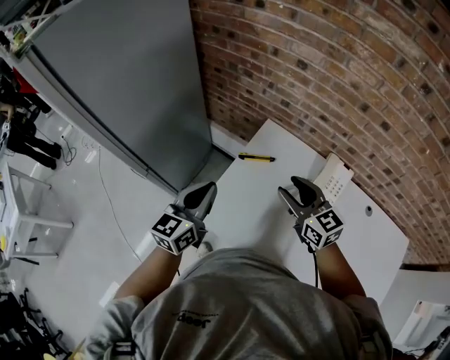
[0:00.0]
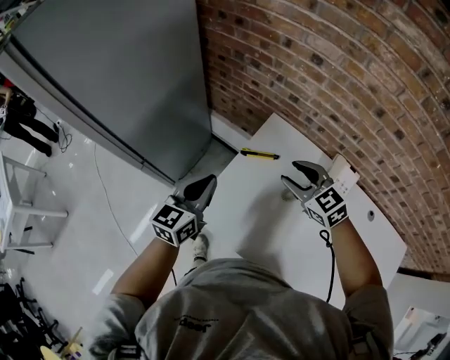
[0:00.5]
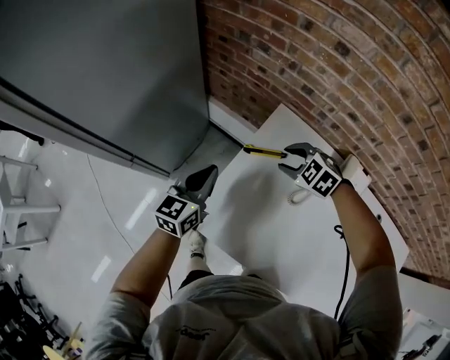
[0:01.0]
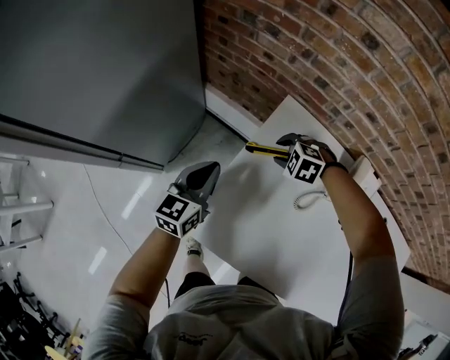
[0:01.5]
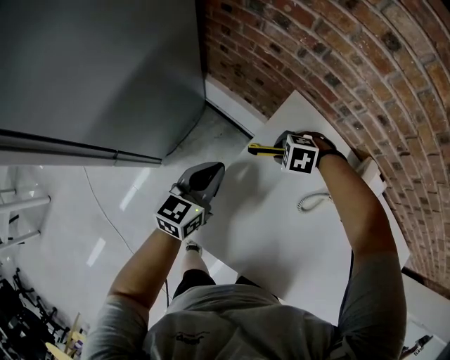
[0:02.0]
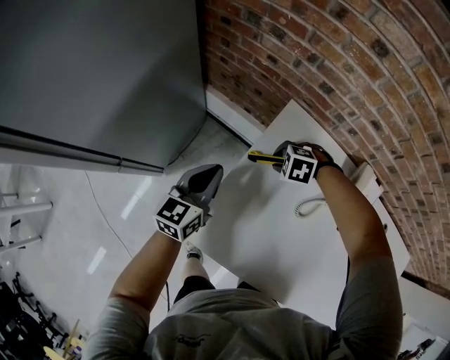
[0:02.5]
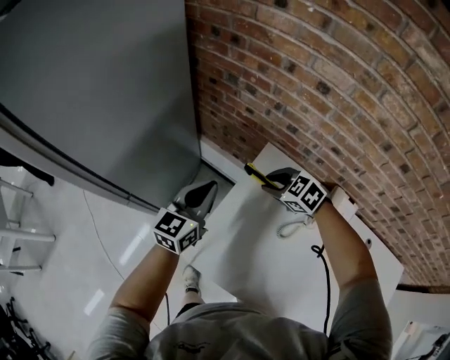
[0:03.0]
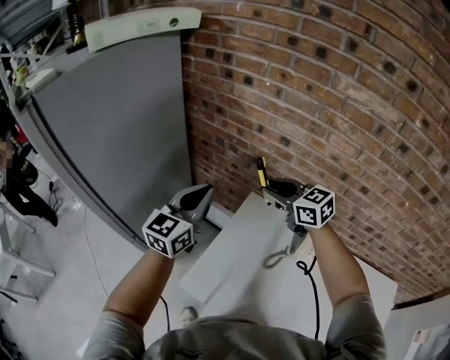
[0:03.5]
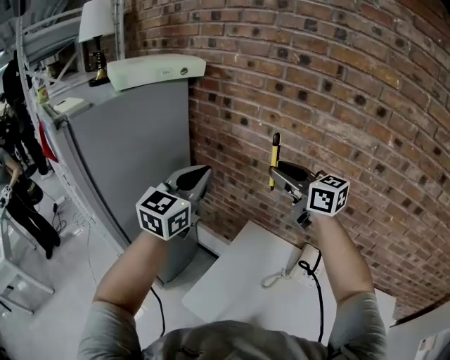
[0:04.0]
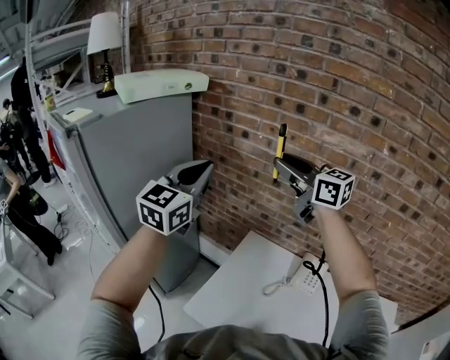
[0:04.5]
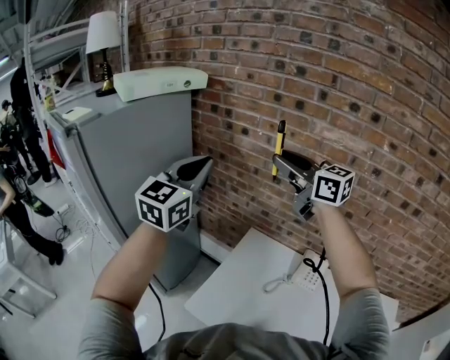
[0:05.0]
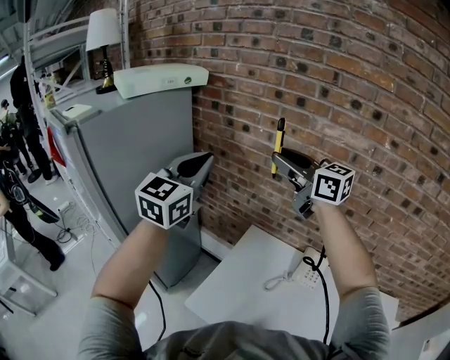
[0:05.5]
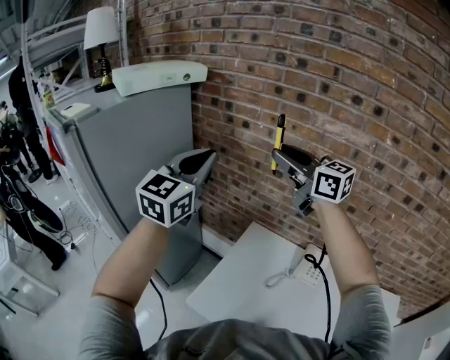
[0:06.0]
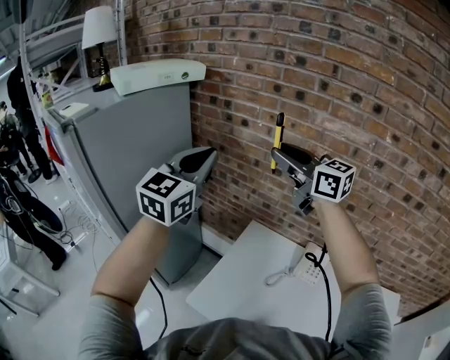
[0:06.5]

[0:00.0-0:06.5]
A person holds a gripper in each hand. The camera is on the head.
0:00.0 to 0:02.0: Both grippers travel together downward, roughly 30 cm. The right gripper angles its fingers downward, by approximately 70 degrees.
0:02.0 to 0:04.5: Both grippers travel together upward, roughly 60 cm. The left gripper rotates some 40 degrees. The right gripper tilts its fingers roughly 90 degrees upward.
0:04.5 to 0:06.5: The grippers make only small movements.

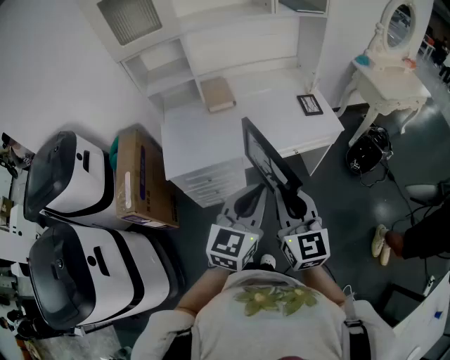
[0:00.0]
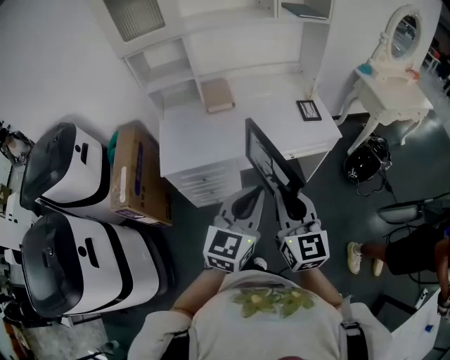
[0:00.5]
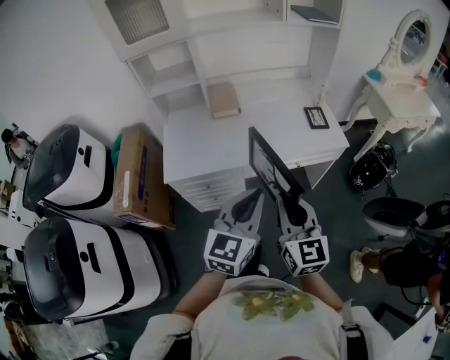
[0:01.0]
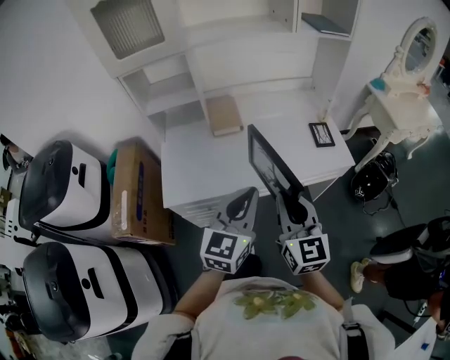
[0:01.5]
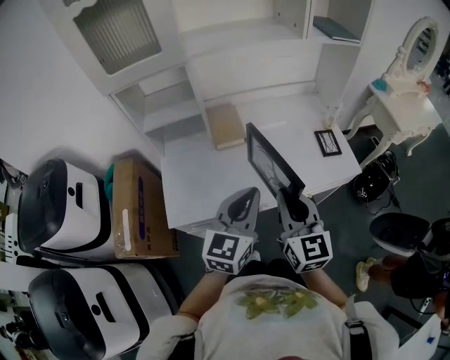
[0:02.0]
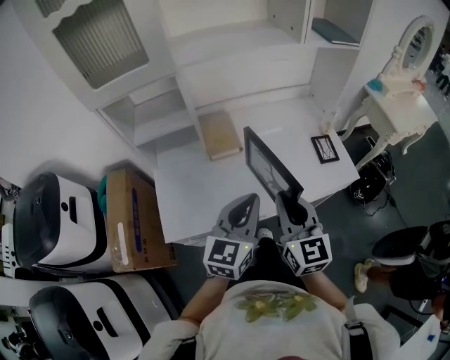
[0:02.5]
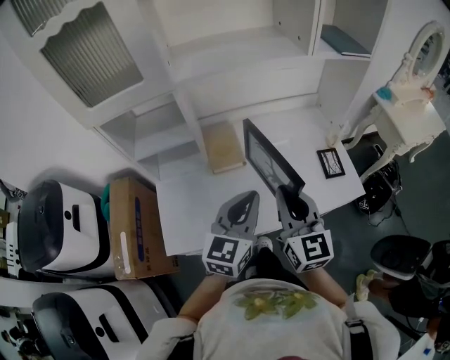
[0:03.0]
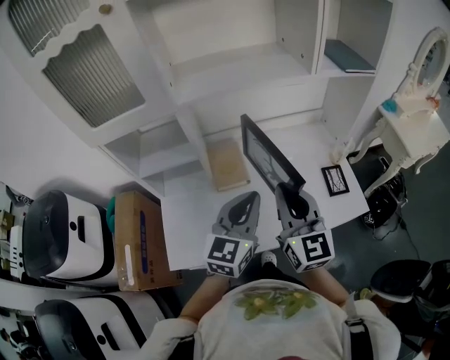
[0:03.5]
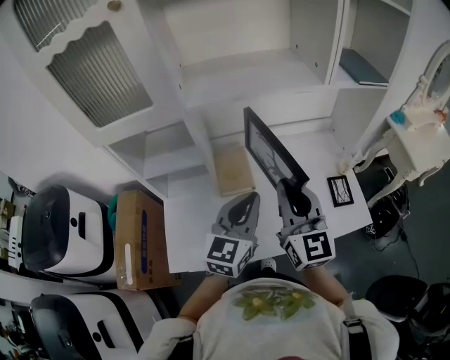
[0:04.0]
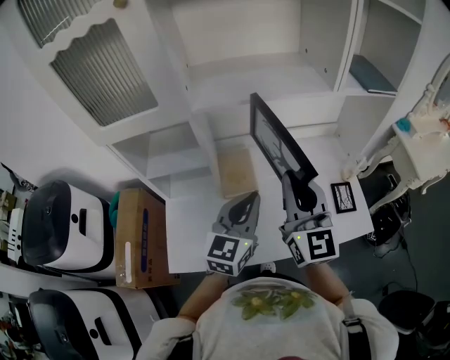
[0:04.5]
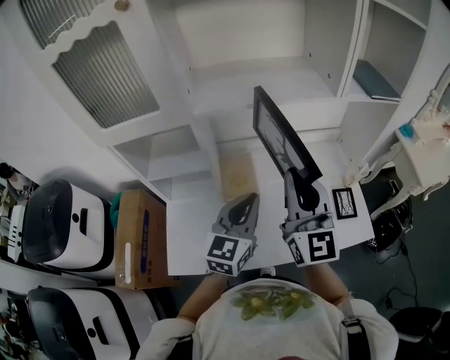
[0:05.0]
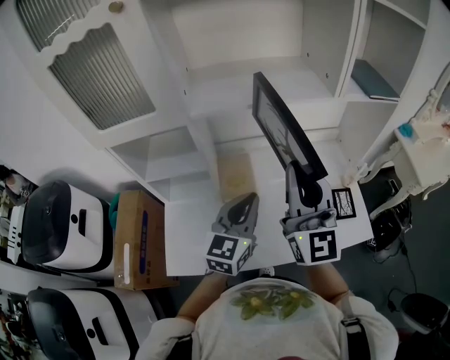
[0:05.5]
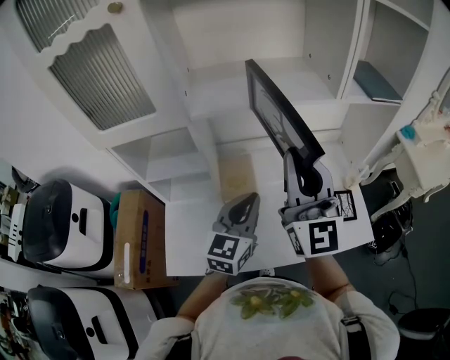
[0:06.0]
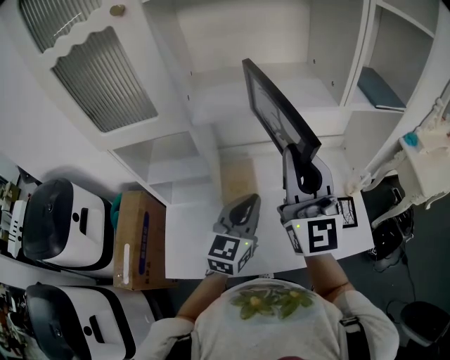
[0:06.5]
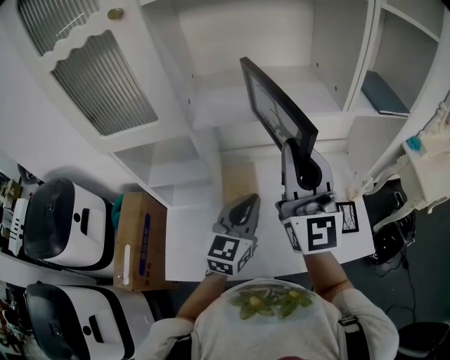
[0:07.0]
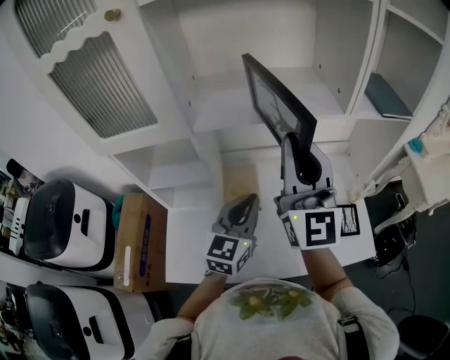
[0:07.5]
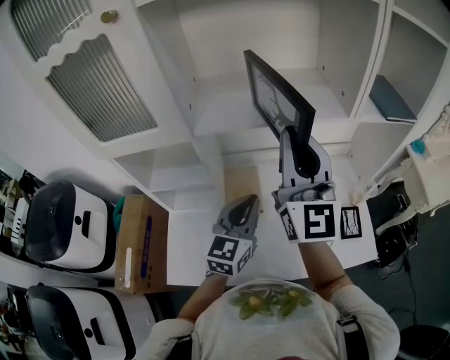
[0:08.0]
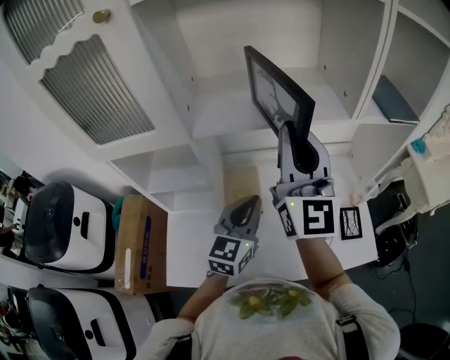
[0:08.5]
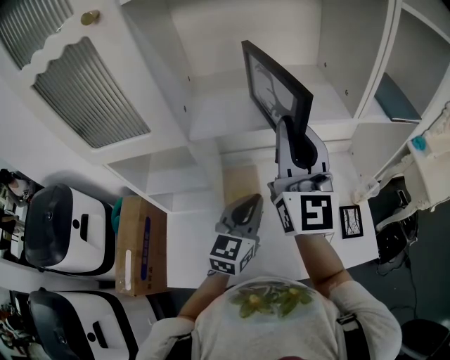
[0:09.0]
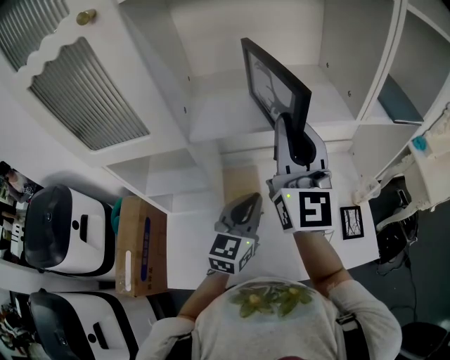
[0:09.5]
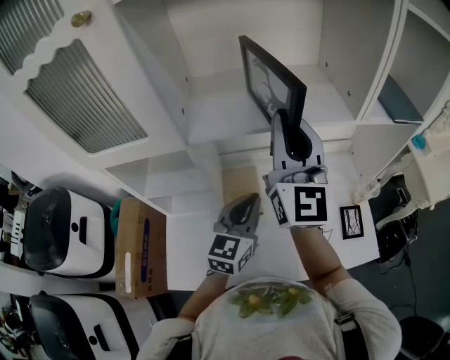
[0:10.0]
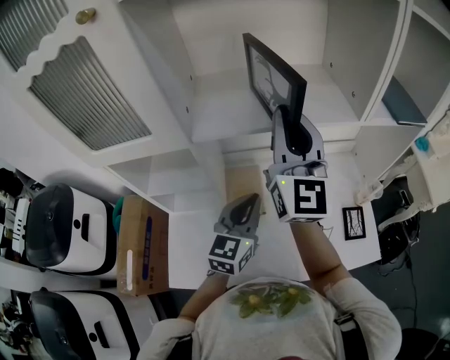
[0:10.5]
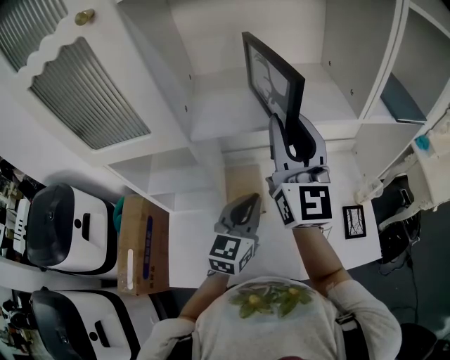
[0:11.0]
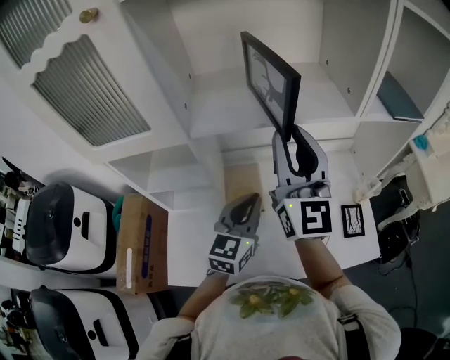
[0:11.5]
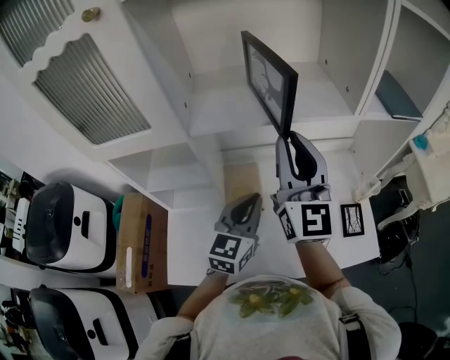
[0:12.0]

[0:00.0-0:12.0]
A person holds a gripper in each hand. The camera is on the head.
0:00.0 to 0:02.0: The two grippers go roughly 25 cm forward.
0:02.0 to 0:04.0: The grippers both shift forward by approximately 20 cm.
0:04.0 to 0:06.0: The right gripper is displaced upward and forward by some 10 cm.
0:06.0 to 0:08.0: The left gripper moves forward, about 5 cm. The right gripper moves forward, some 10 cm.
0:08.0 to 0:10.0: The right gripper travels forward by some 5 cm.
0:10.0 to 0:12.0: The right gripper moves roughly 5 cm.

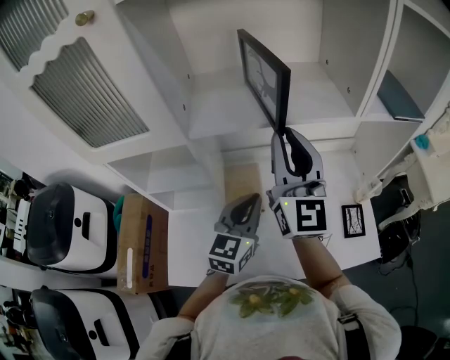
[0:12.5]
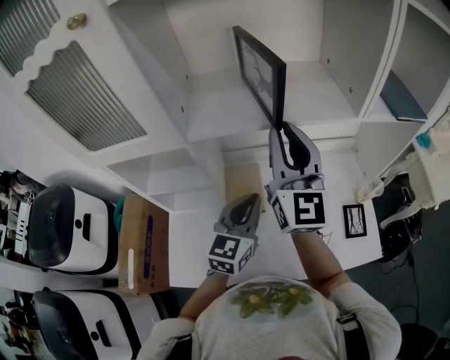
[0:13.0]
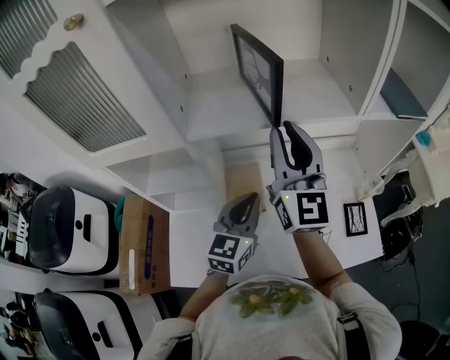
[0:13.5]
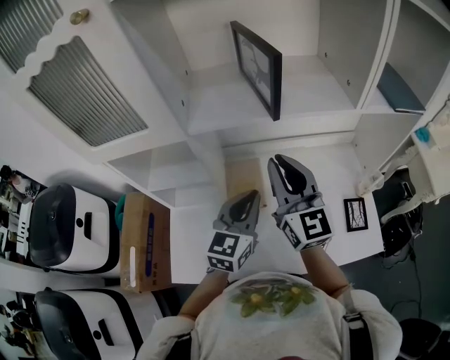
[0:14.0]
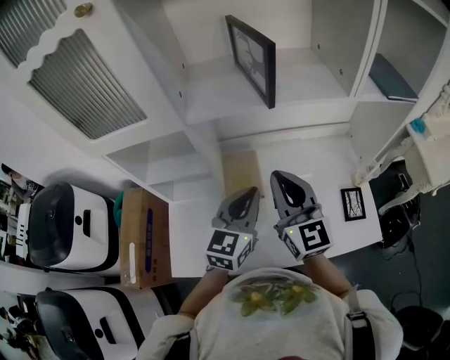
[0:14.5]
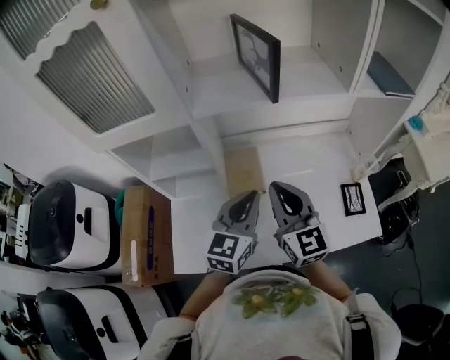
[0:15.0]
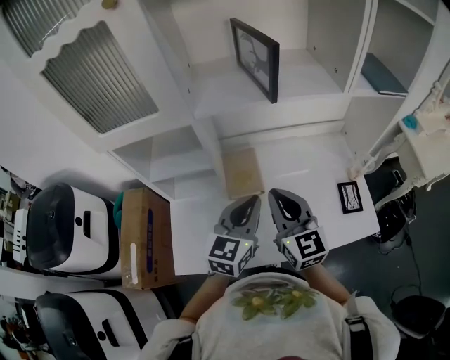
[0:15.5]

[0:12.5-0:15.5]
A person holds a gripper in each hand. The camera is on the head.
0:12.5 to 0:14.0: The right gripper goes about 10 cm downward.
0:14.0 to 0:15.5: The right gripper goes approximately 15 cm backward and downward. The left gripper heads backward, covering some 5 cm.

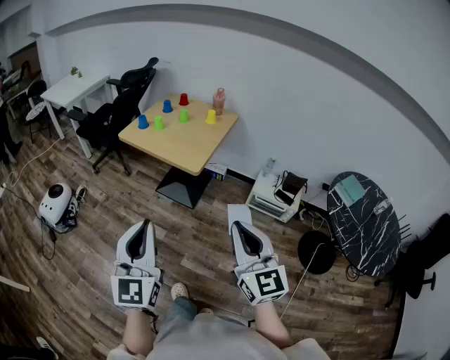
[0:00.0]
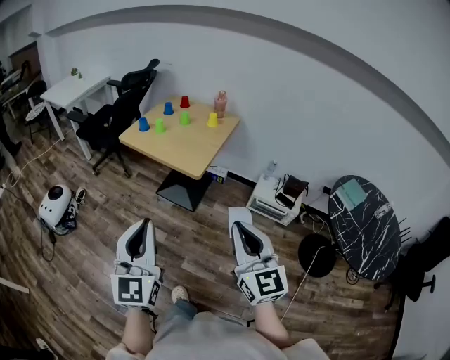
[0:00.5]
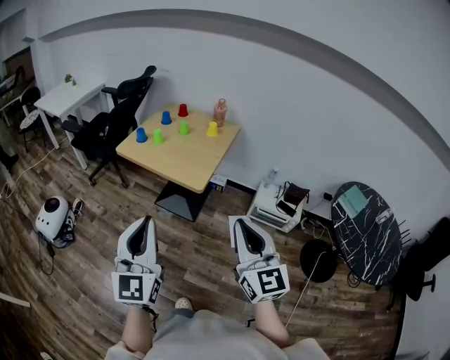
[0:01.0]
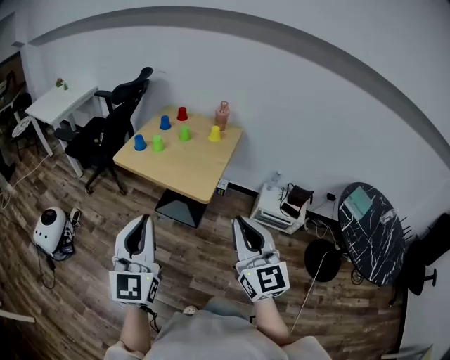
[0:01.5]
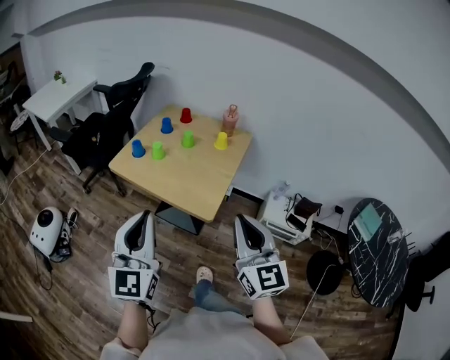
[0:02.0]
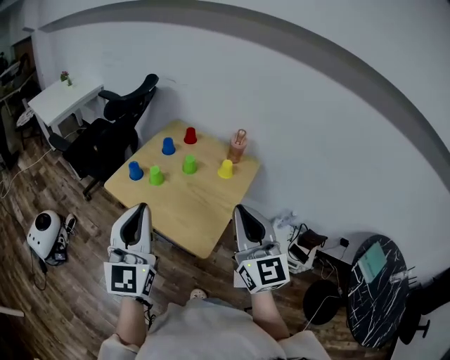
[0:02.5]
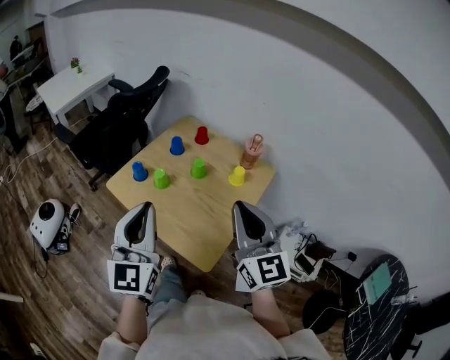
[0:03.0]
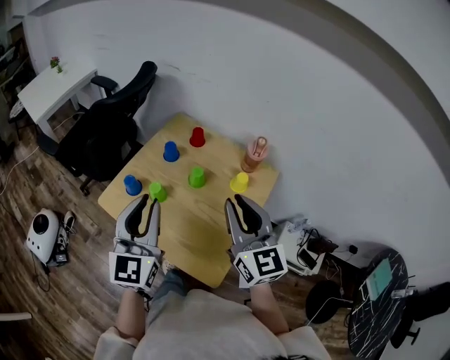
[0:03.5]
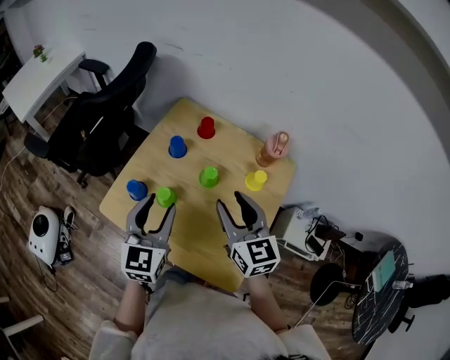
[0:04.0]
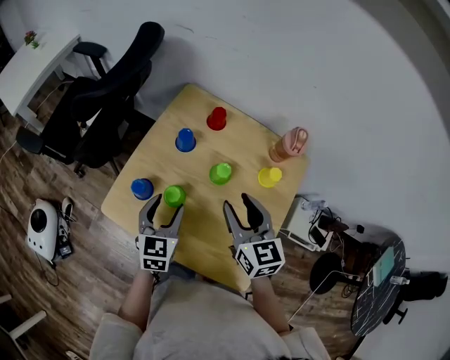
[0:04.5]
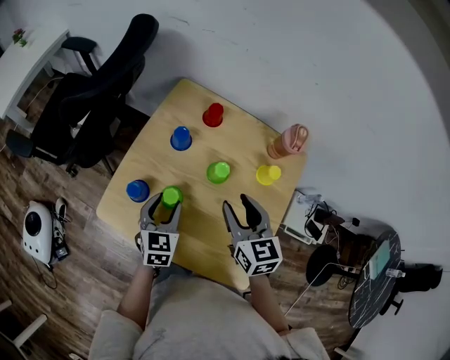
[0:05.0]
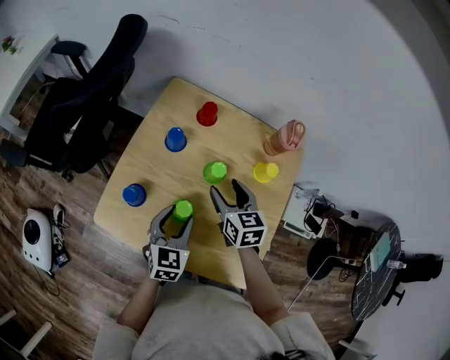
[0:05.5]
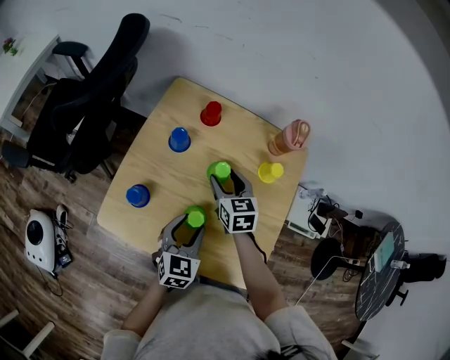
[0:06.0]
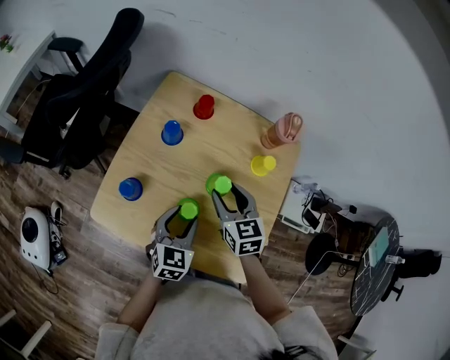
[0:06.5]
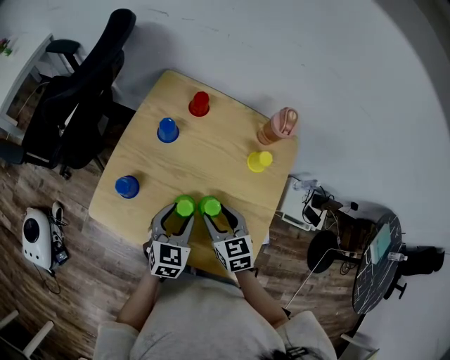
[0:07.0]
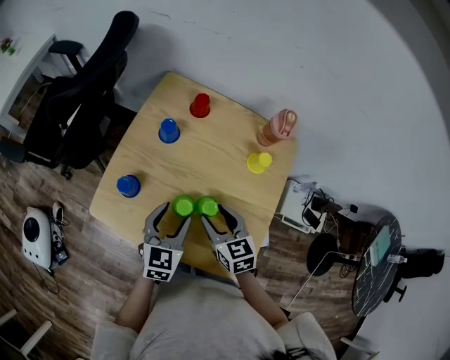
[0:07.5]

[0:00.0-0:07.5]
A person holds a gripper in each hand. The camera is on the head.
0:00.0 to 0:02.0: Both grippers travel together forward, some 30 cm.
0:02.0 to 0:04.0: The two grippers travel together, forward, about 40 cm. The right gripper rotates some 20 degrees, and opens; the left gripper turns by about 20 degrees, and opens its fingers.
0:04.0 to 0:05.5: The right gripper is displaced downward and forward by some 15 cm, and changes its angle by approximately 20 degrees. The left gripper moves downward, approximately 15 cm, and changes its angle by approximately 20 degrees.
0:05.5 to 0:07.5: The right gripper is displaced backward by some 10 cm.
